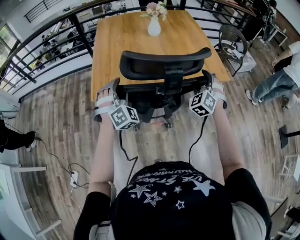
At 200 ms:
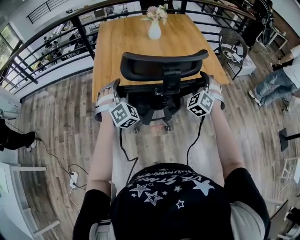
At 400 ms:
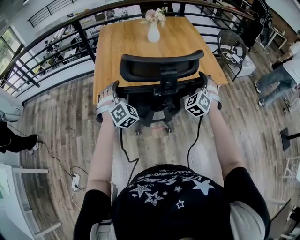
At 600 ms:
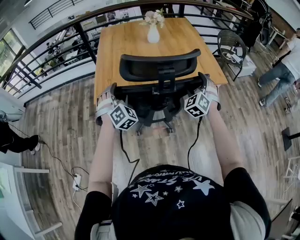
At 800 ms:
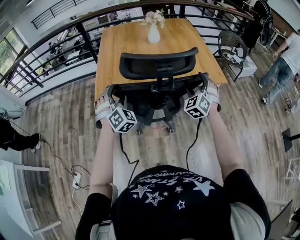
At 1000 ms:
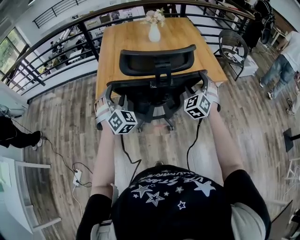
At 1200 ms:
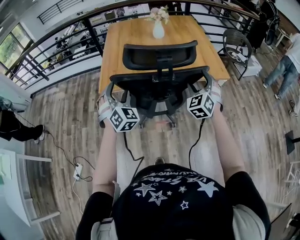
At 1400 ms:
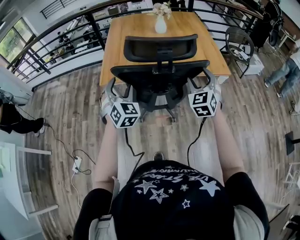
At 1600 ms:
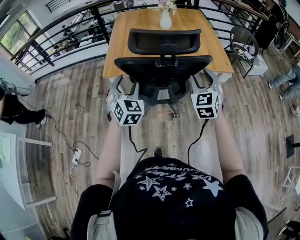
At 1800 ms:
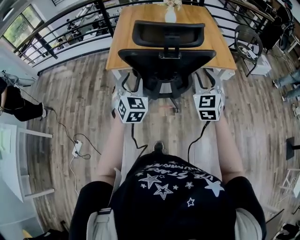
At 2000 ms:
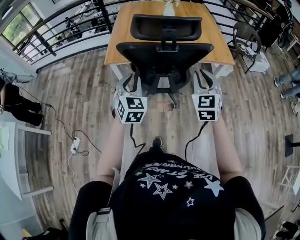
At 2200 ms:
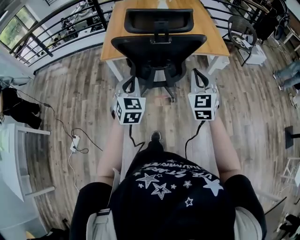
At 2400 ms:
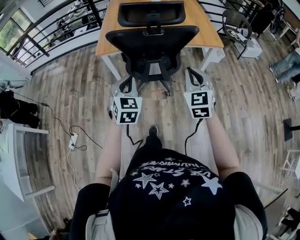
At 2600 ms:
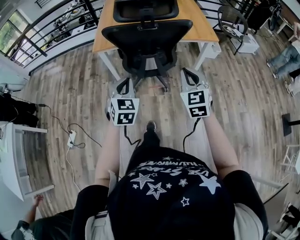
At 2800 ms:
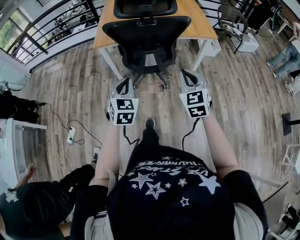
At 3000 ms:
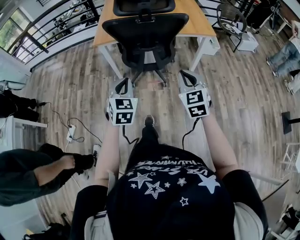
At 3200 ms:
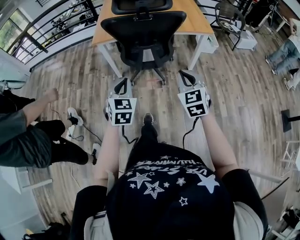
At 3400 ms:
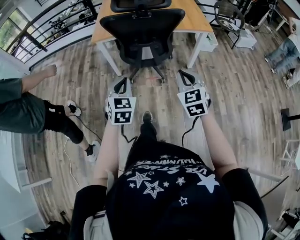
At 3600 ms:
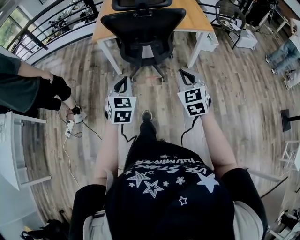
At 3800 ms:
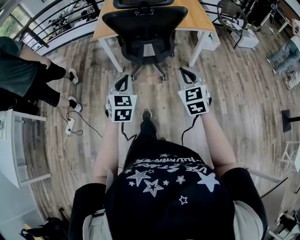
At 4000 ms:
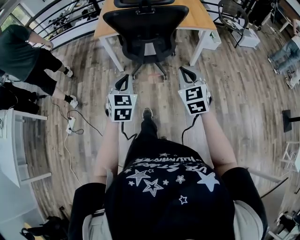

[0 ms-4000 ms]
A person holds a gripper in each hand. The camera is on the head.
0 ms to 1400 ms: The left gripper is displaced backward by roughly 15 cm, and swivels roughly 30 degrees, while the right gripper heads backward and upward, covering approximately 15 cm, and swivels approximately 30 degrees.
1400 ms to 2600 ms: Both grippers travel together backward, about 25 cm. The right gripper closes. The left gripper rotates some 20 degrees, and closes its fingers.
2600 ms to 4000 ms: Both grippers travel together backward, roughly 10 cm.

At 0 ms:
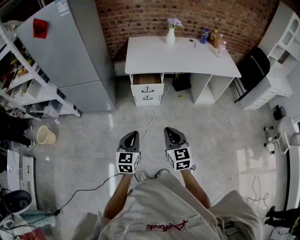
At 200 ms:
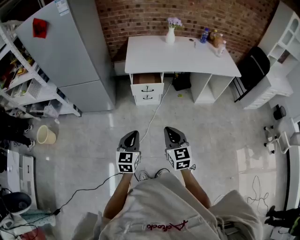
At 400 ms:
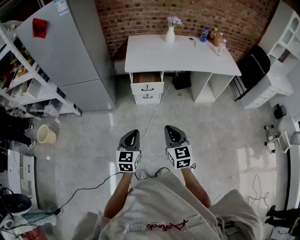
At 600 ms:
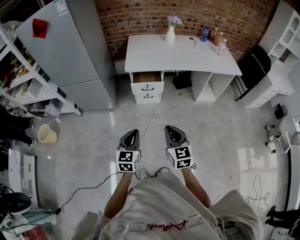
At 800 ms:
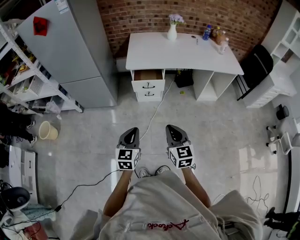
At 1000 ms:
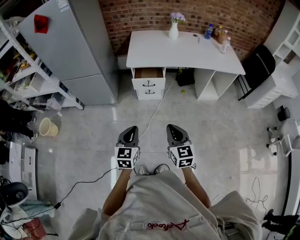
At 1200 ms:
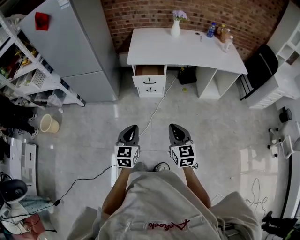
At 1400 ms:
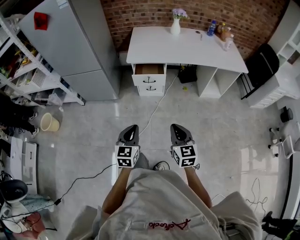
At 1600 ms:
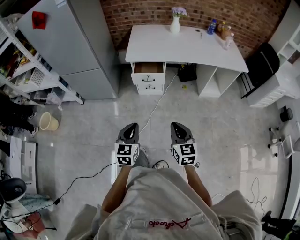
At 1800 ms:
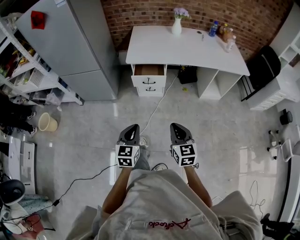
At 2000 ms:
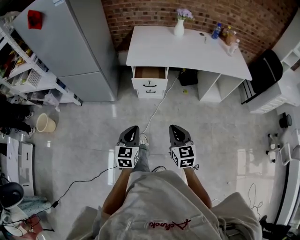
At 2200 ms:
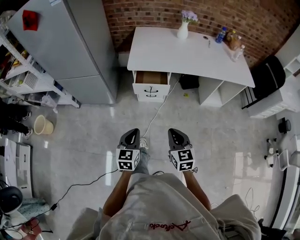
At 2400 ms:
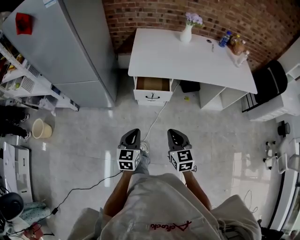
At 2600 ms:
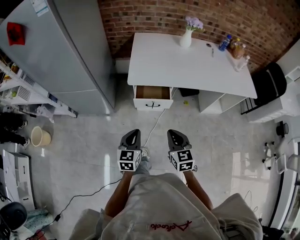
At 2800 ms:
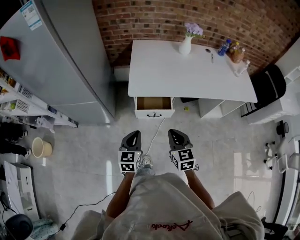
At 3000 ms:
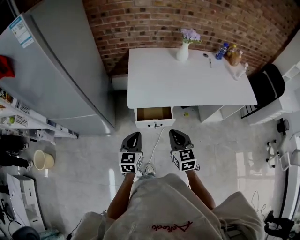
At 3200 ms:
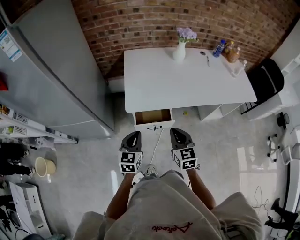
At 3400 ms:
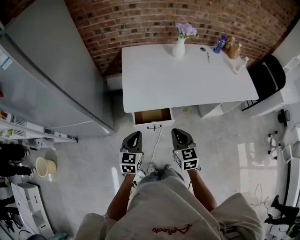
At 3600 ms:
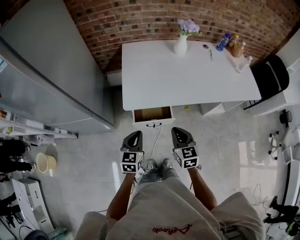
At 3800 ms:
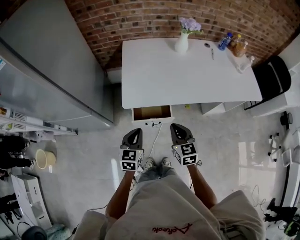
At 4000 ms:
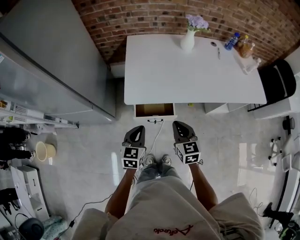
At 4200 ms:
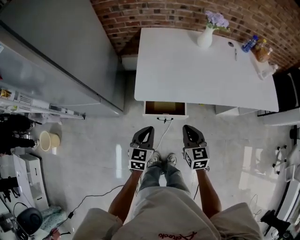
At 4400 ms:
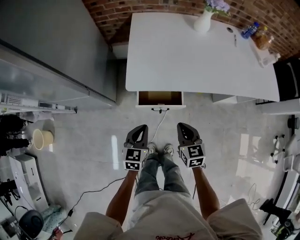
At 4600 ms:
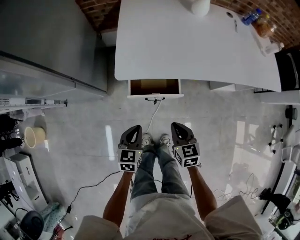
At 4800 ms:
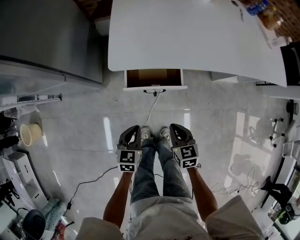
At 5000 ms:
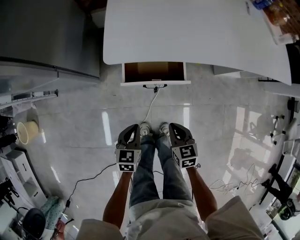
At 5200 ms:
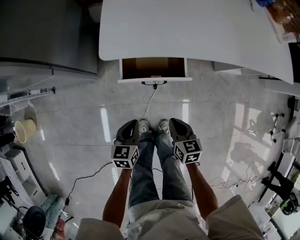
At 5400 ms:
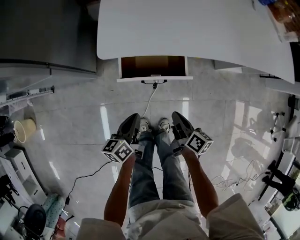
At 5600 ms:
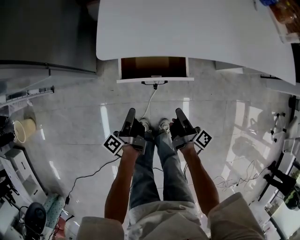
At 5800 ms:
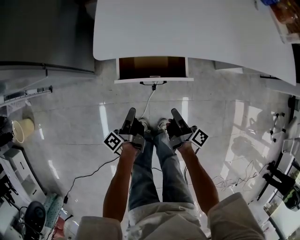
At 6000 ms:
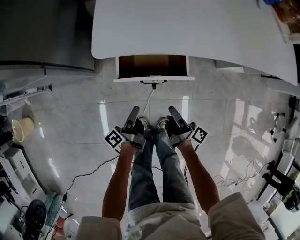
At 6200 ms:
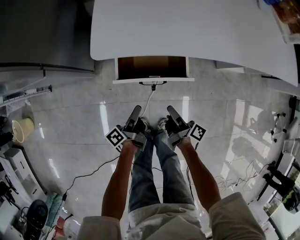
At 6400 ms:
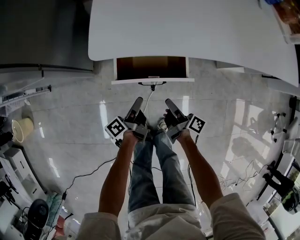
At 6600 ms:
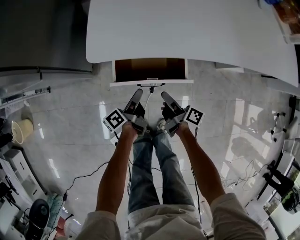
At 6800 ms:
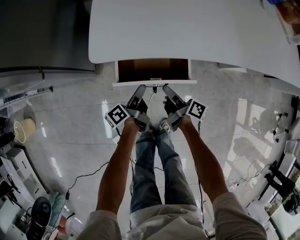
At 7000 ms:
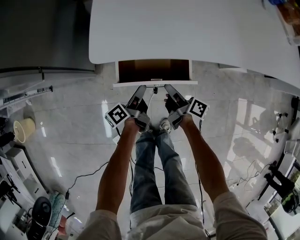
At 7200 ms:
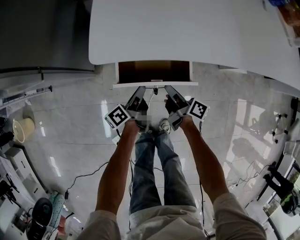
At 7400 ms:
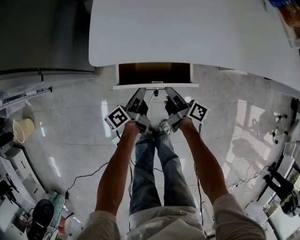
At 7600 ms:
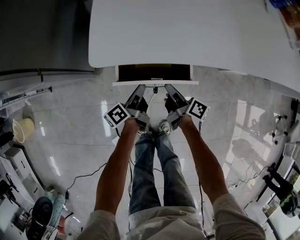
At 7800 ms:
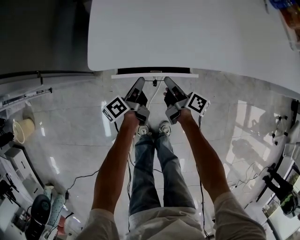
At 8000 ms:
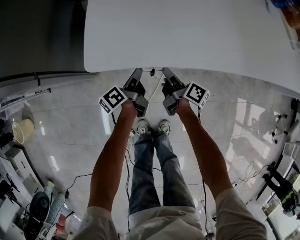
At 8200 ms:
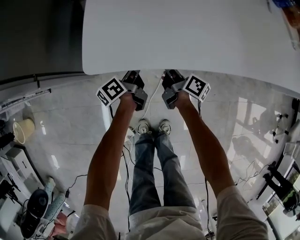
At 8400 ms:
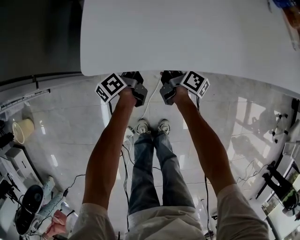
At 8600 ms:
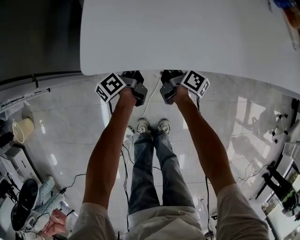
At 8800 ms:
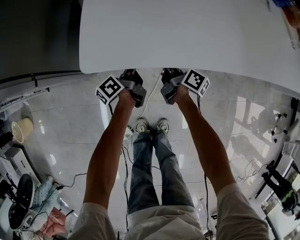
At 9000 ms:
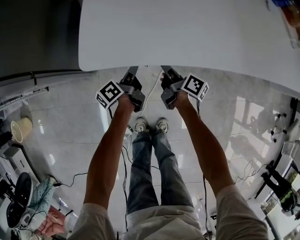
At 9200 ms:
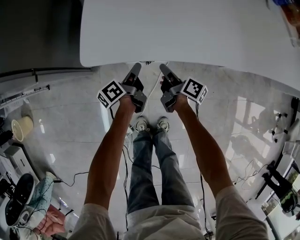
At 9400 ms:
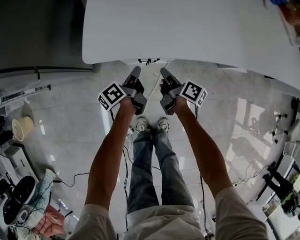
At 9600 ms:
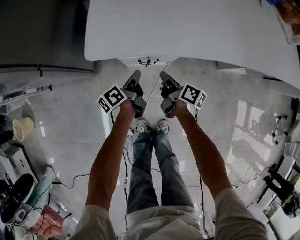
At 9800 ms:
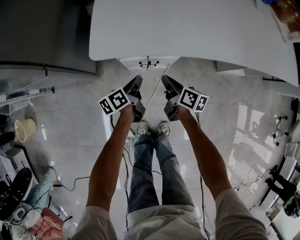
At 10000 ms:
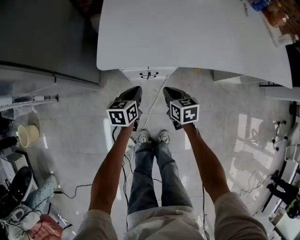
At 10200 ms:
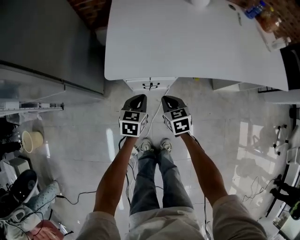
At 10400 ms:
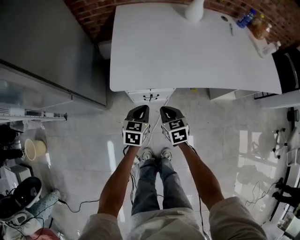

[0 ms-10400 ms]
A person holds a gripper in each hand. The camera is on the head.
0 ms to 1400 ms: The right gripper goes roughly 5 cm to the right.
1400 ms to 3000 ms: Both grippers are carried forward, roughly 40 cm.
3000 ms to 4400 ms: The left gripper goes about 10 cm downward. Meanwhile the right gripper goes approximately 15 cm downward and forward.
4400 ms to 6000 ms: Both grippers move downward, some 25 cm. The right gripper rolls clockwise, seen from behind, by about 80 degrees, and opens up. The left gripper rolls counterclockwise, seen from behind, by about 80 degrees, and opens its fingers.
6000 ms to 7400 ms: Both grippers travel together forward, about 10 cm. The right gripper closes up. The left gripper closes up.
7400 ms to 9000 ms: The two grippers go about 10 cm forward.
9000 ms to 10400 ms: Both grippers travel together upward and backward, approximately 20 cm. The left gripper twists roughly 70 degrees clockwise, seen from behind; the right gripper twists some 70 degrees counterclockwise, seen from behind.

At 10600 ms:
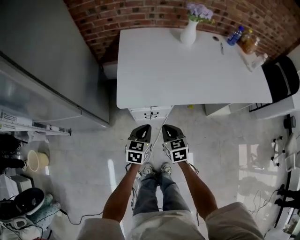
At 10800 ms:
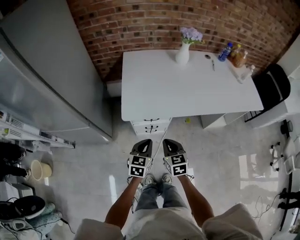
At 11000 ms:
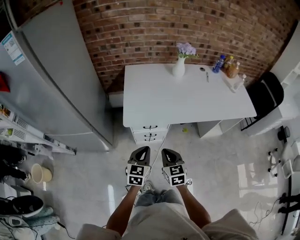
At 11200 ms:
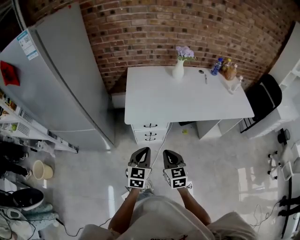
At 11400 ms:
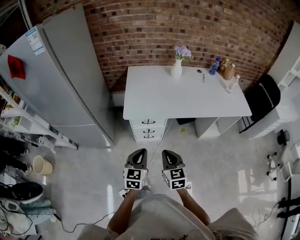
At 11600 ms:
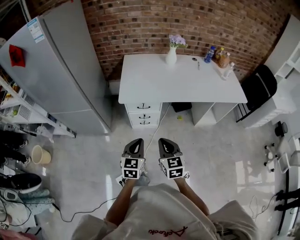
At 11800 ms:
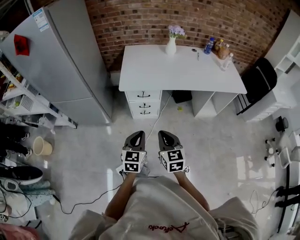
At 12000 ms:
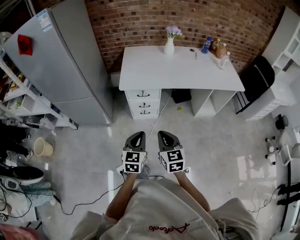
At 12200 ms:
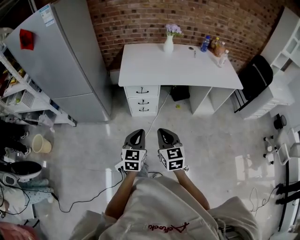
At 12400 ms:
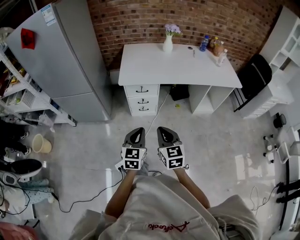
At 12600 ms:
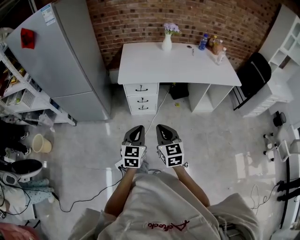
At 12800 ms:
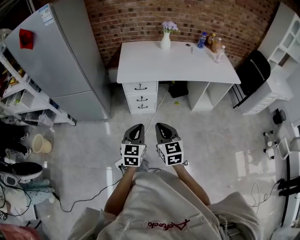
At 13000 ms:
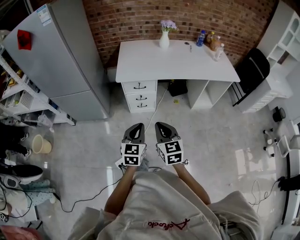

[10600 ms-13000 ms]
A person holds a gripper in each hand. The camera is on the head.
10600 ms to 11800 ms: Both grippers move backward and upward, roughly 35 cm.
11800 ms to 13000 ms: Both grippers travel together backward, some 5 cm.

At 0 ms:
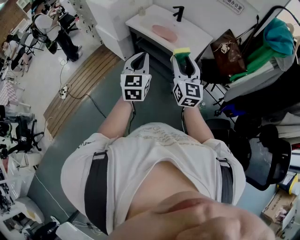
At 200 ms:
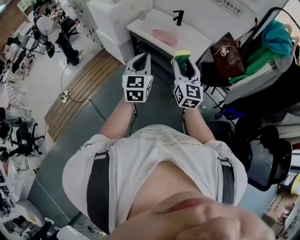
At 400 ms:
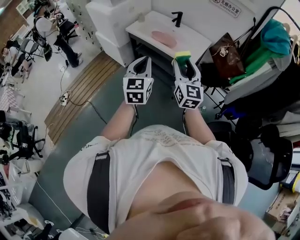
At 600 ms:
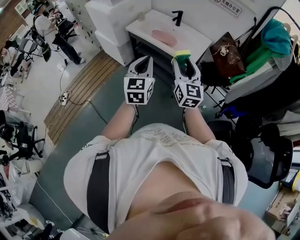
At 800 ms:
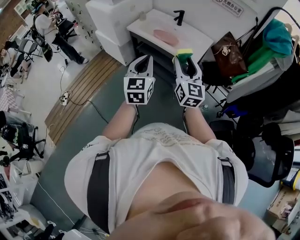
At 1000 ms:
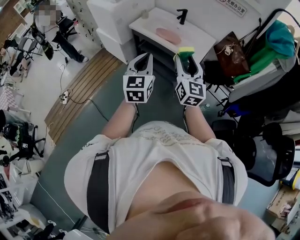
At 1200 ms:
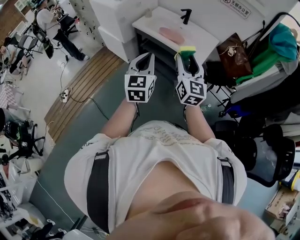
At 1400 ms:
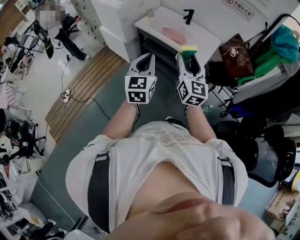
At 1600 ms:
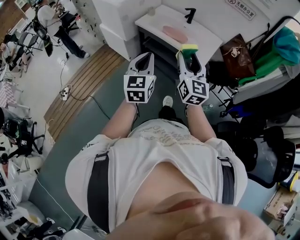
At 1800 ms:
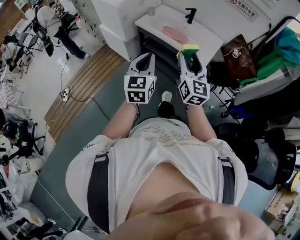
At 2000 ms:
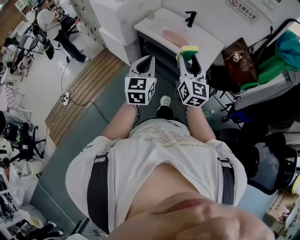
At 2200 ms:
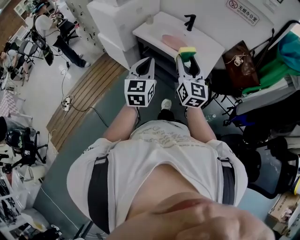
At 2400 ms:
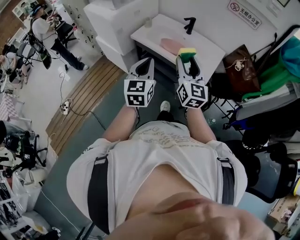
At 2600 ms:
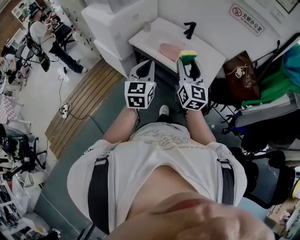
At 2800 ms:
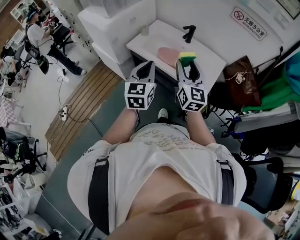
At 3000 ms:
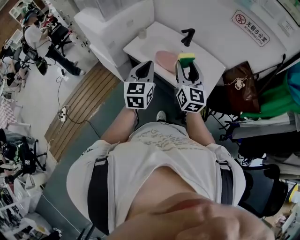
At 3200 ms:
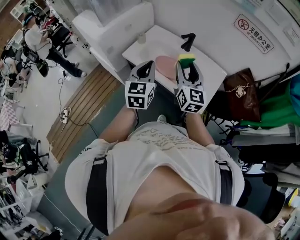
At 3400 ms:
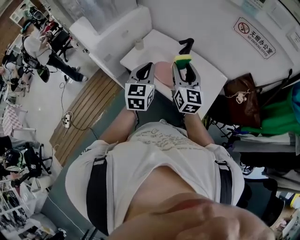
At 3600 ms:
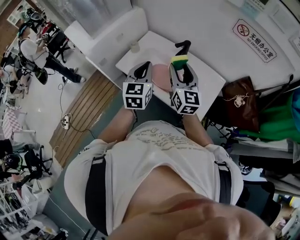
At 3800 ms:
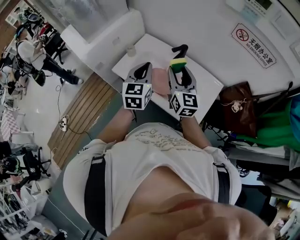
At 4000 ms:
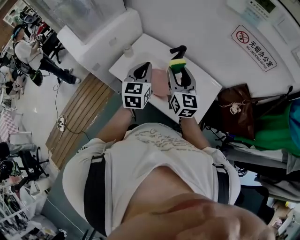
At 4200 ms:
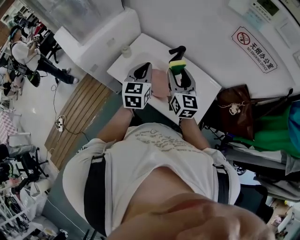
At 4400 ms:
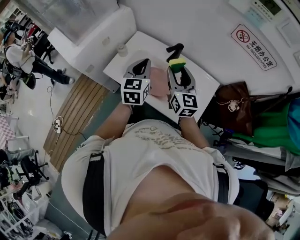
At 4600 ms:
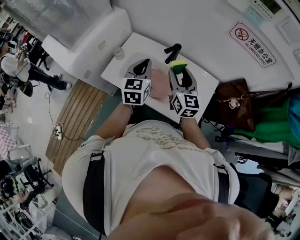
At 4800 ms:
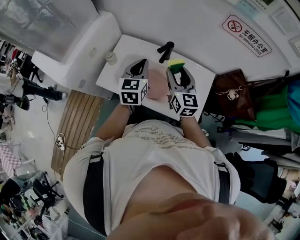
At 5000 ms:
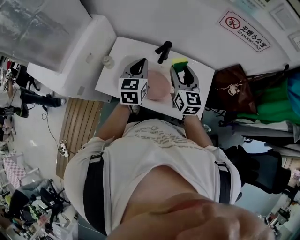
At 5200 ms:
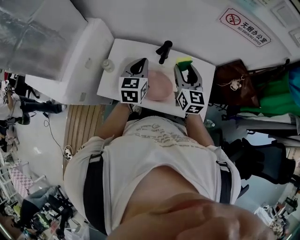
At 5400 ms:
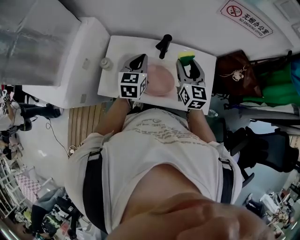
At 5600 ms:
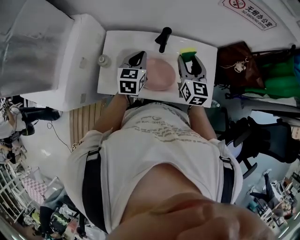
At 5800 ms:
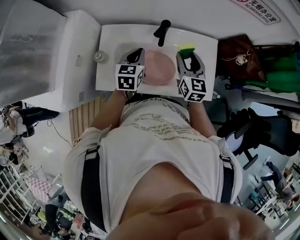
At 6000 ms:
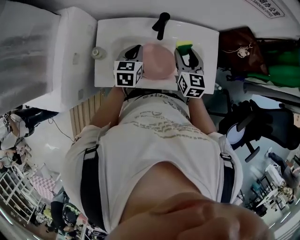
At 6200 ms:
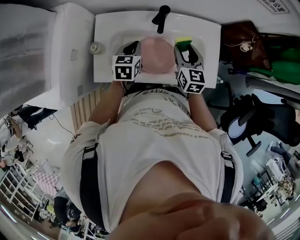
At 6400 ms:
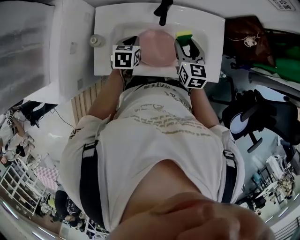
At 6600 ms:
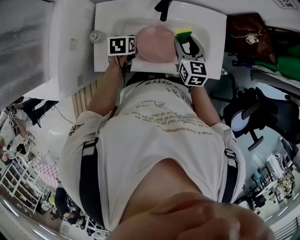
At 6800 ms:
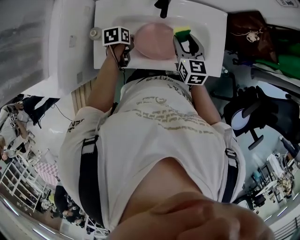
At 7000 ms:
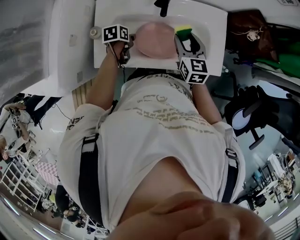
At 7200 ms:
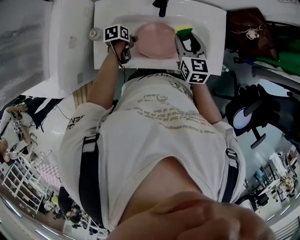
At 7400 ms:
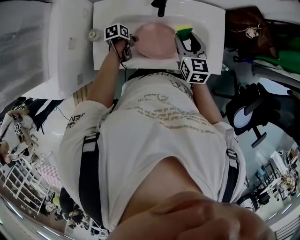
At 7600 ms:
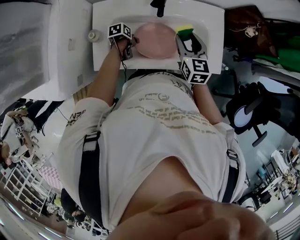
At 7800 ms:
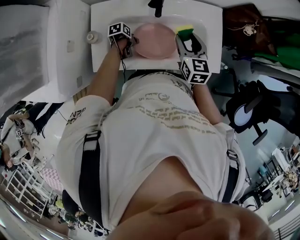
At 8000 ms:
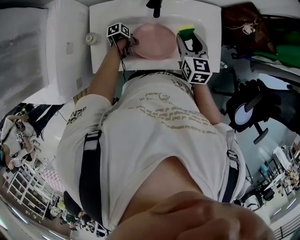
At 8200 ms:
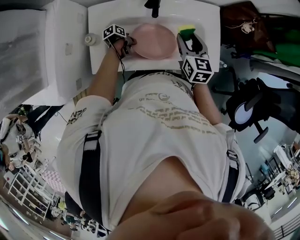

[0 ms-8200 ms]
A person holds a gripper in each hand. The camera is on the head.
0 ms to 1600 ms: Both grippers travel together to the left, some 10 cm.
1600 ms to 3200 ms: Both grippers move forward, about 35 cm.
3200 ms to 5000 ms: Both grippers travel together forward, approximately 20 cm. The left gripper changes its angle by some 20 degrees.
5000 ms to 6600 ms: The left gripper goes approximately 20 cm downward, and points its fingers approximately 40 degrees further downward; the right gripper moves downward, approximately 10 cm, and turns by some 20 degrees.
6600 ms to 8200 ms: The left gripper goes approximately 15 cm downward, changes its angle by roughly 50 degrees, and opens and closes again.
